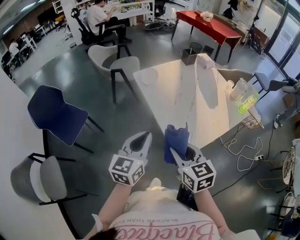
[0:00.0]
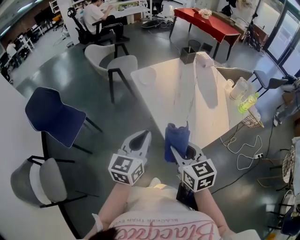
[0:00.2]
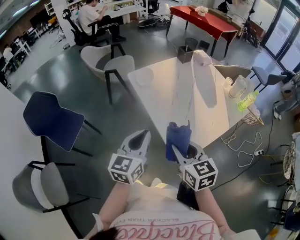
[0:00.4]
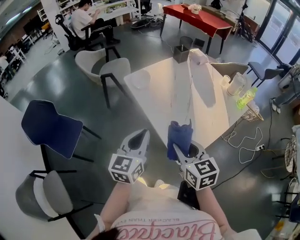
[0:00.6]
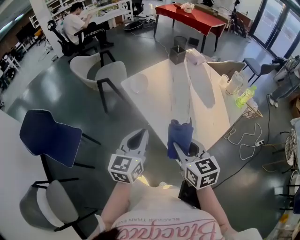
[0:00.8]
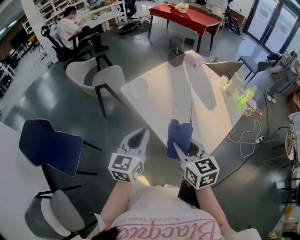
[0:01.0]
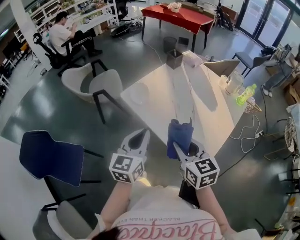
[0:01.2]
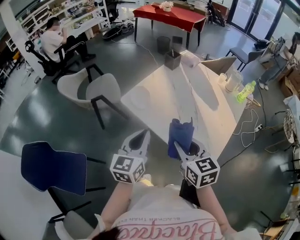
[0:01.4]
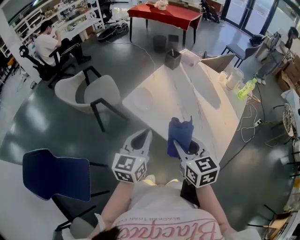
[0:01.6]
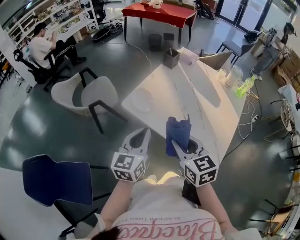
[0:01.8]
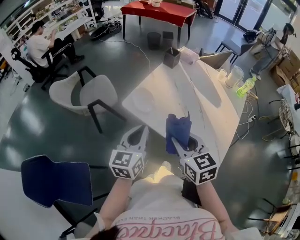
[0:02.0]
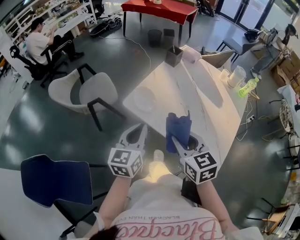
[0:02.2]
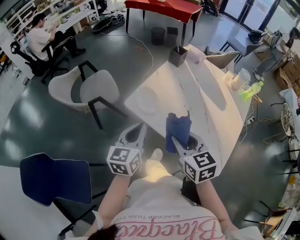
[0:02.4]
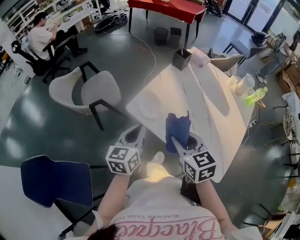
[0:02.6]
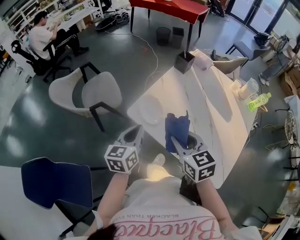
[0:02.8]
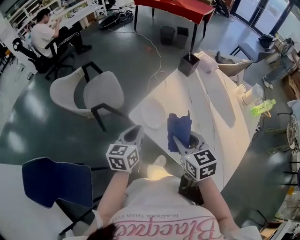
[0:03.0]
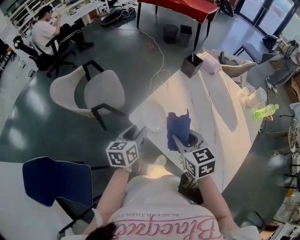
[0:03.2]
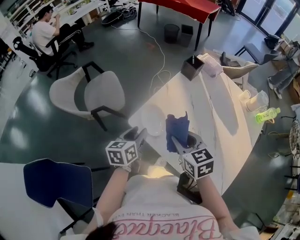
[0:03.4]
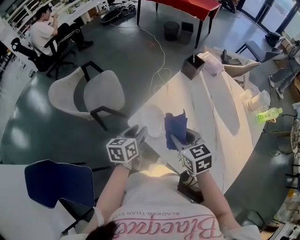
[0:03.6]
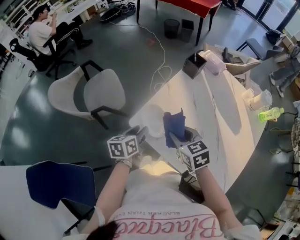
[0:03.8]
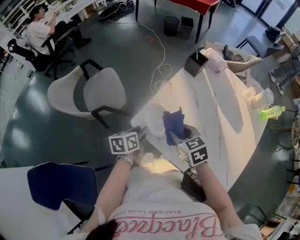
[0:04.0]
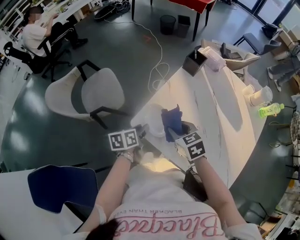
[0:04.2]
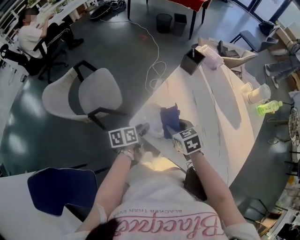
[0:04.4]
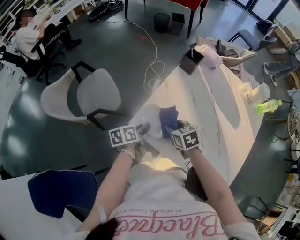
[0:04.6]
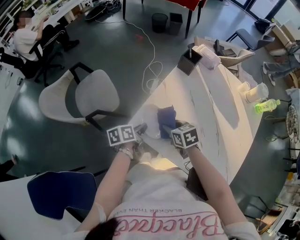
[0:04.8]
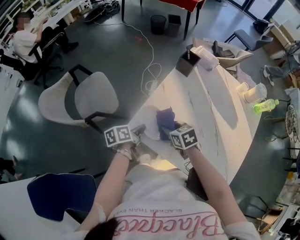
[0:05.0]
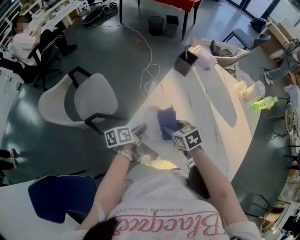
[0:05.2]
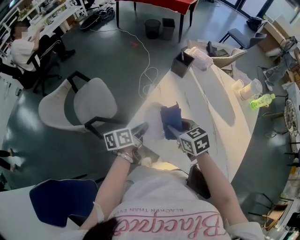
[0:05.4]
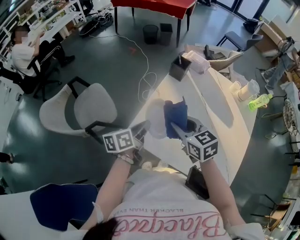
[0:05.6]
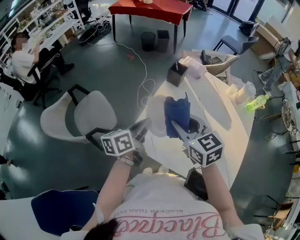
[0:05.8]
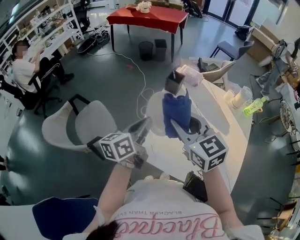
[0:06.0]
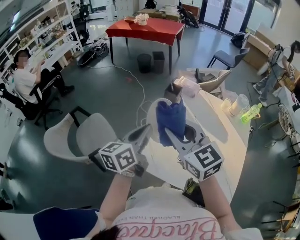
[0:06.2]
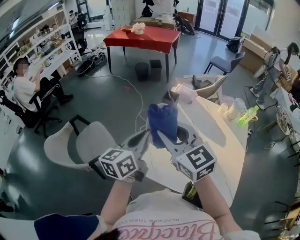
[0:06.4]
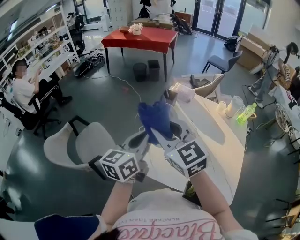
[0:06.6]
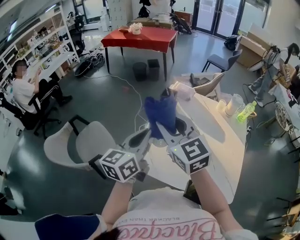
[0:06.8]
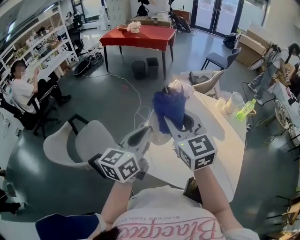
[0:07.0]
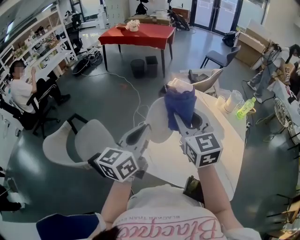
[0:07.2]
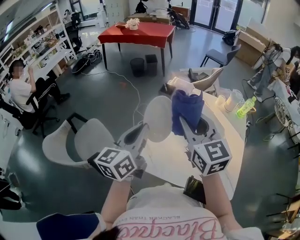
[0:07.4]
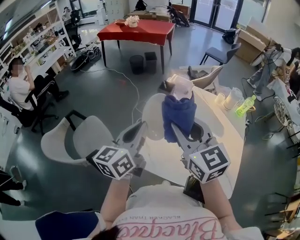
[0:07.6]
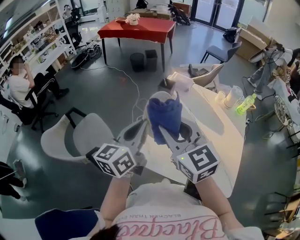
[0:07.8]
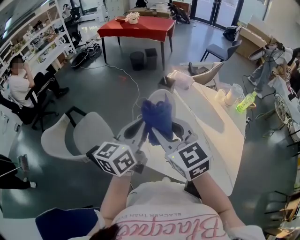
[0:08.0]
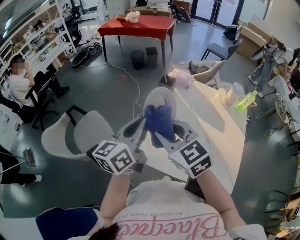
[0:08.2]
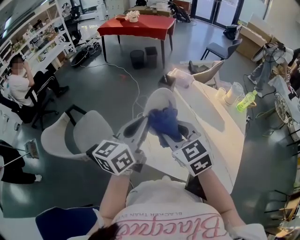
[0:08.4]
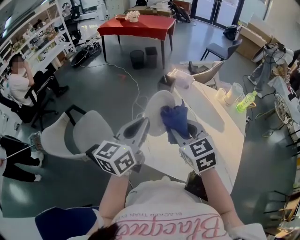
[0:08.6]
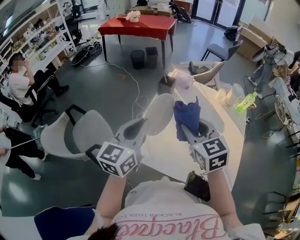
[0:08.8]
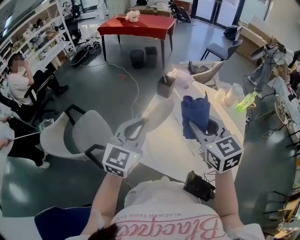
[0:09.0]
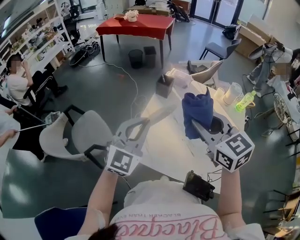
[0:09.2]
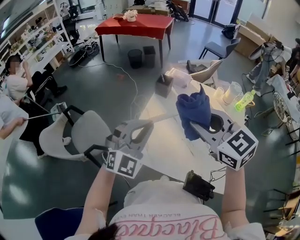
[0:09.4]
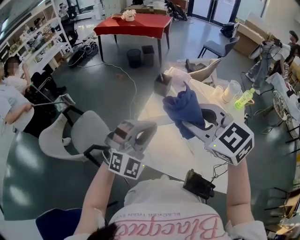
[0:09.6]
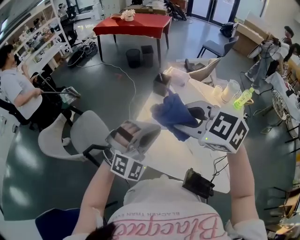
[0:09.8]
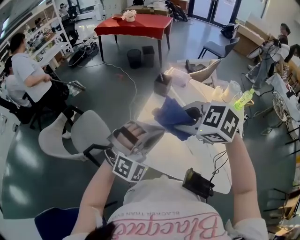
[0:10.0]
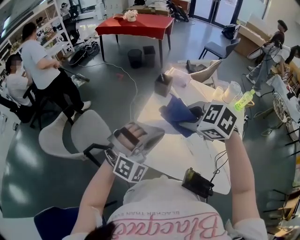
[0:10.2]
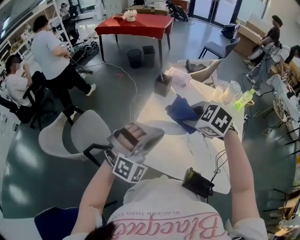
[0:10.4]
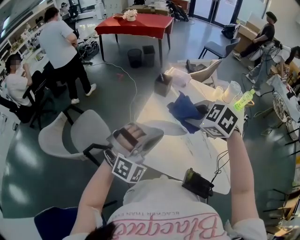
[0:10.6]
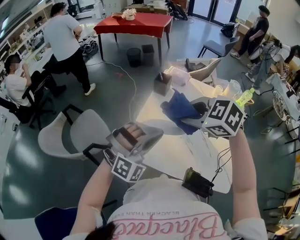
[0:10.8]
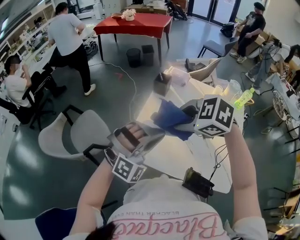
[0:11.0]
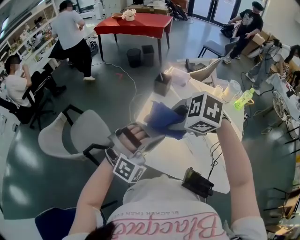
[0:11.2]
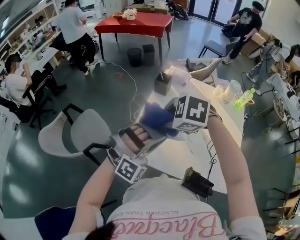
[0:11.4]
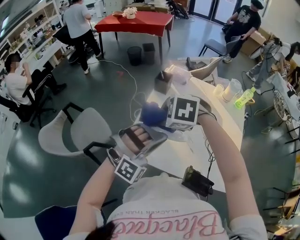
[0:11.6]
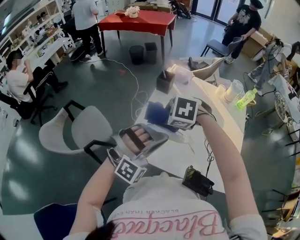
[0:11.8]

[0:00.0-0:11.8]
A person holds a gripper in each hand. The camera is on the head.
0:00.0 to 0:01.4: Both grippers travel together forward and to the left, some 25 cm. The right gripper rotates about 20 degrees.
0:01.4 to 0:03.0: The right gripper goes approximately 25 cm forward and to the left, while the left gripper is displaced forward, to the left and downward by some 25 cm.
0:03.0 to 0:04.4: Both grippers travel together downward and forward, some 15 cm. The left gripper turns by about 40 degrees, and opens its fingers.
0:04.4 to 0:06.0: The grippers both shift upward by approximately 25 cm. The left gripper turns by roughly 40 degrees, and closes its fingers. Meanwhile the right gripper tilts its fingers about 30 degrees upward.
0:06.0 to 0:07.4: The left gripper moves upward, approximately 10 cm. Meanwhile the right gripper is displaced upward and to the right by about 10 cm.
0:07.4 to 0:08.8: The right gripper shifts some 10 cm downward, and moves about 10 cm to the left and comes back.
0:08.8 to 0:10.4: The left gripper moves to the right and backward, about 10 cm, and rolls clockwise, seen from behind, by approximately 90 degrees. The right gripper reaches roughly 10 cm upward, then returns, and tilts its fingers roughly 30 degrees downward.
0:10.4 to 0:11.8: The right gripper goes approximately 10 cm to the left, and rotates some 20 degrees.

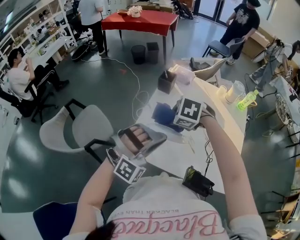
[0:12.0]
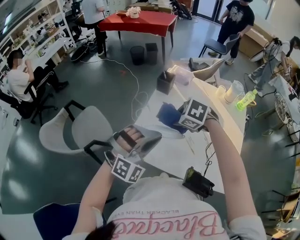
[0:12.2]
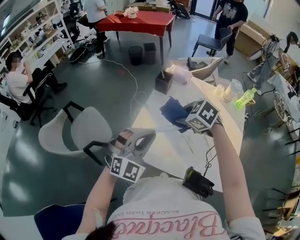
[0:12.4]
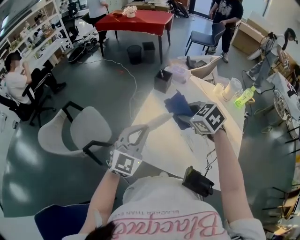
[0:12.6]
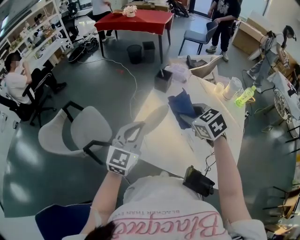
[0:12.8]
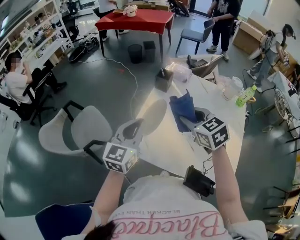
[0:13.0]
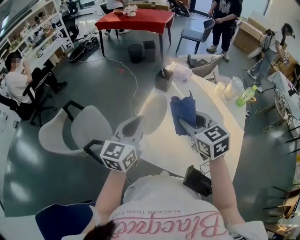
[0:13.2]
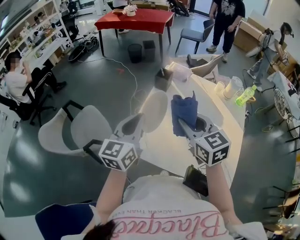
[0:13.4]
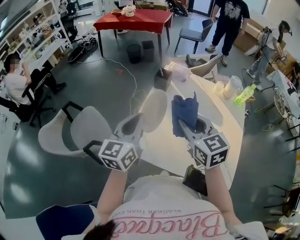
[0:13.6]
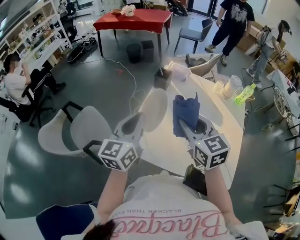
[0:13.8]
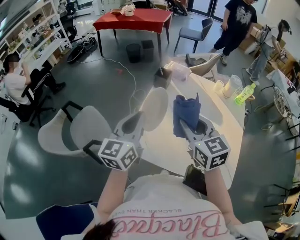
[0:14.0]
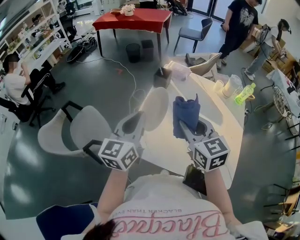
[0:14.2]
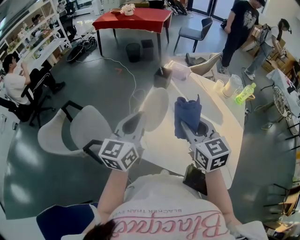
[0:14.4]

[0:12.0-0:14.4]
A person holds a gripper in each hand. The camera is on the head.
0:12.0 to 0:13.2: The right gripper goes about 10 cm upward and to the right, and angles its fingers upward, by approximately 40 degrees. Meanwhile the left gripper is displaced forward and to the left by some 10 cm, and rolls counterclockwise, seen from behind, by about 90 degrees.
0:13.2 to 0:14.4: The grippers make only small movements.

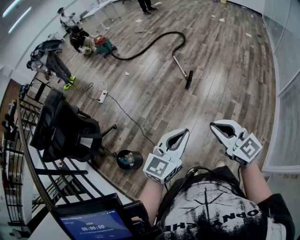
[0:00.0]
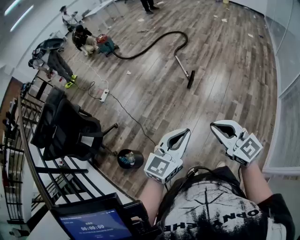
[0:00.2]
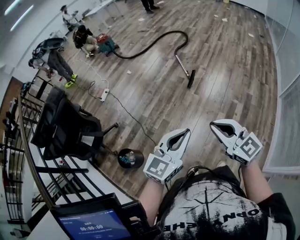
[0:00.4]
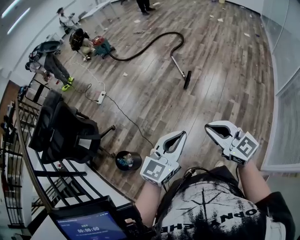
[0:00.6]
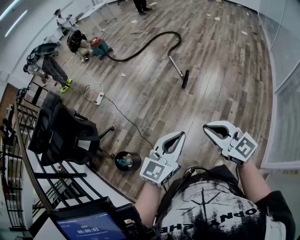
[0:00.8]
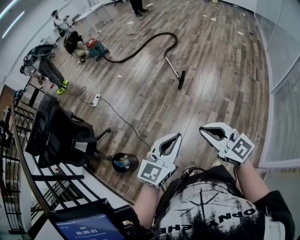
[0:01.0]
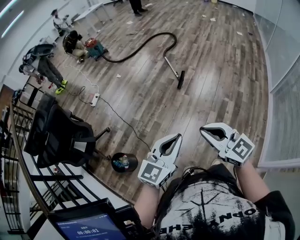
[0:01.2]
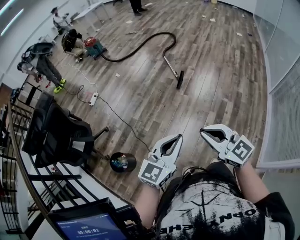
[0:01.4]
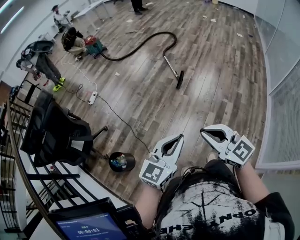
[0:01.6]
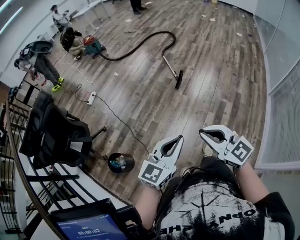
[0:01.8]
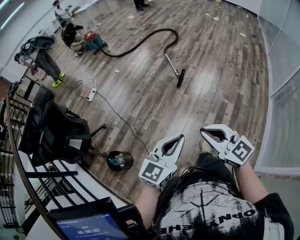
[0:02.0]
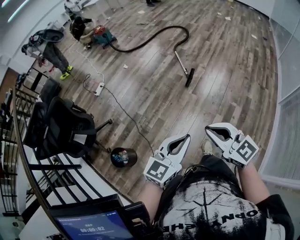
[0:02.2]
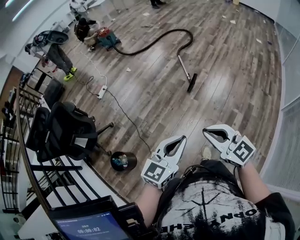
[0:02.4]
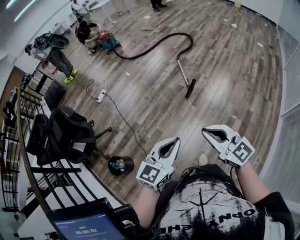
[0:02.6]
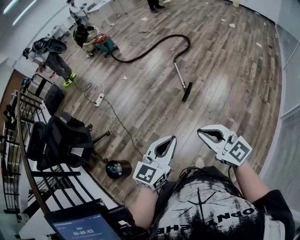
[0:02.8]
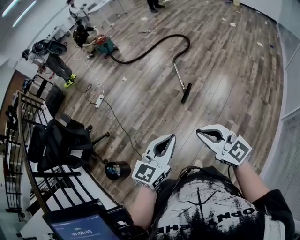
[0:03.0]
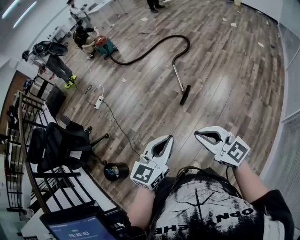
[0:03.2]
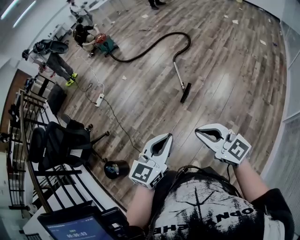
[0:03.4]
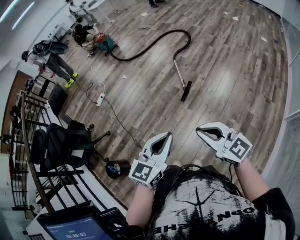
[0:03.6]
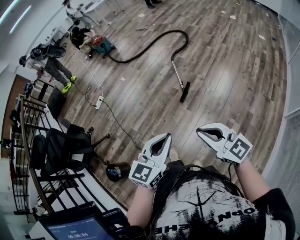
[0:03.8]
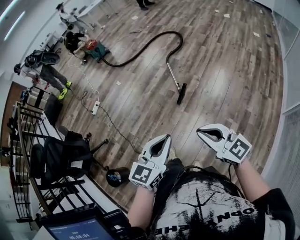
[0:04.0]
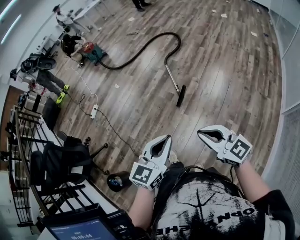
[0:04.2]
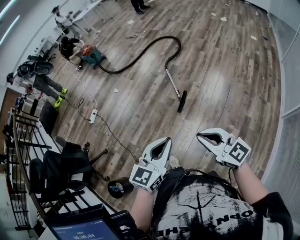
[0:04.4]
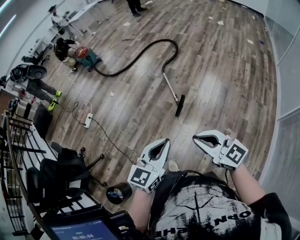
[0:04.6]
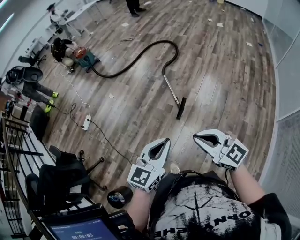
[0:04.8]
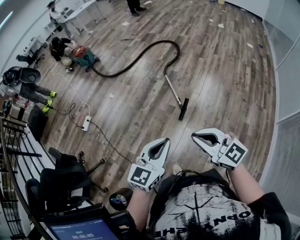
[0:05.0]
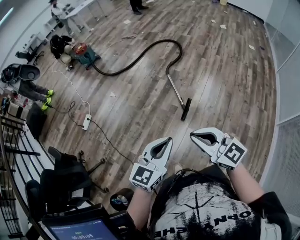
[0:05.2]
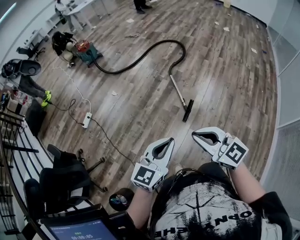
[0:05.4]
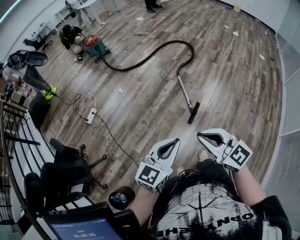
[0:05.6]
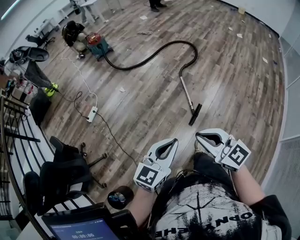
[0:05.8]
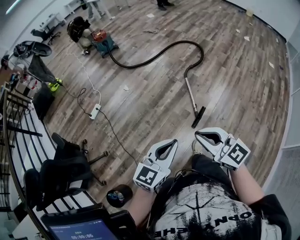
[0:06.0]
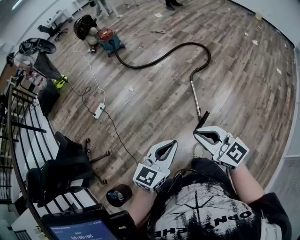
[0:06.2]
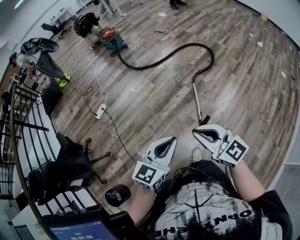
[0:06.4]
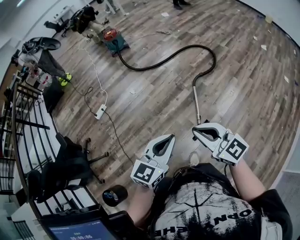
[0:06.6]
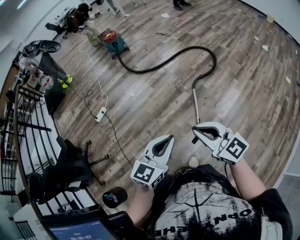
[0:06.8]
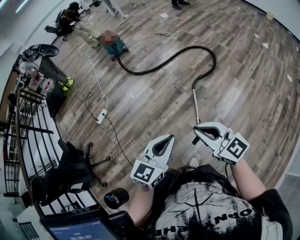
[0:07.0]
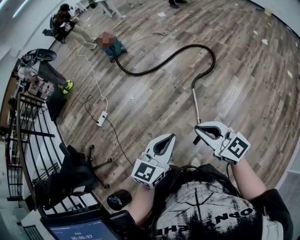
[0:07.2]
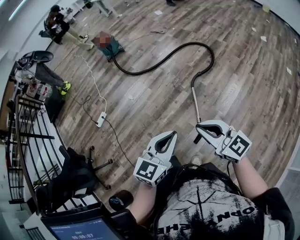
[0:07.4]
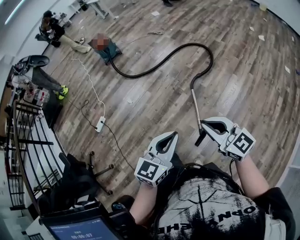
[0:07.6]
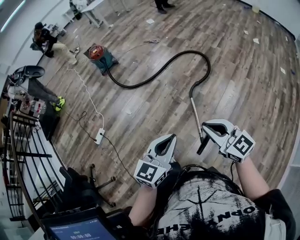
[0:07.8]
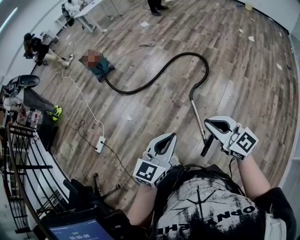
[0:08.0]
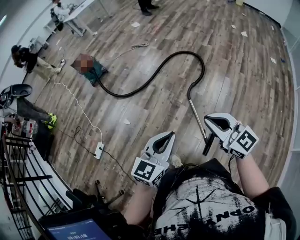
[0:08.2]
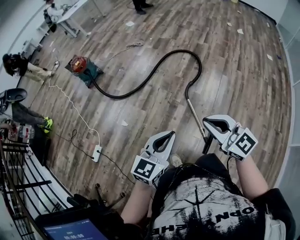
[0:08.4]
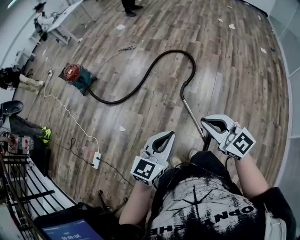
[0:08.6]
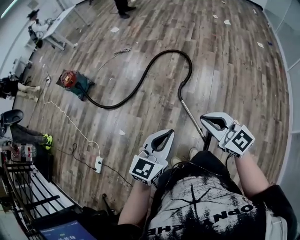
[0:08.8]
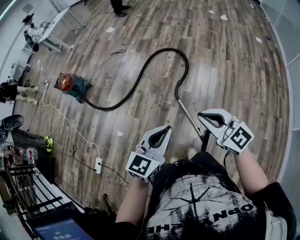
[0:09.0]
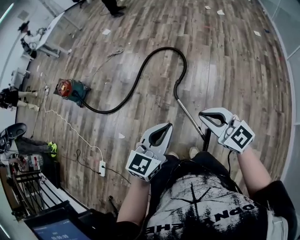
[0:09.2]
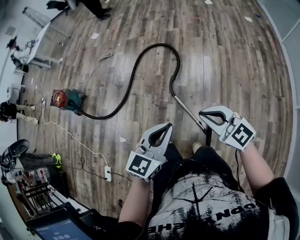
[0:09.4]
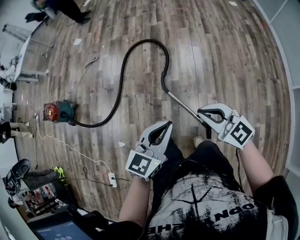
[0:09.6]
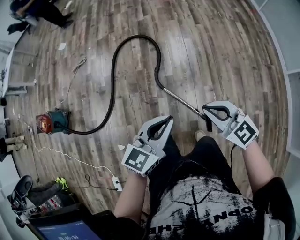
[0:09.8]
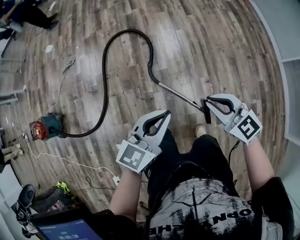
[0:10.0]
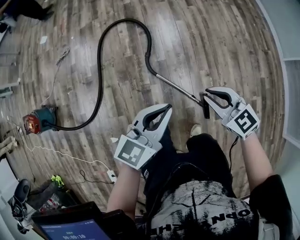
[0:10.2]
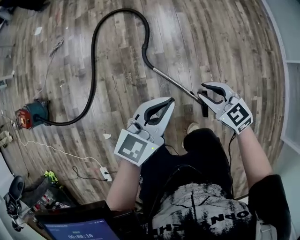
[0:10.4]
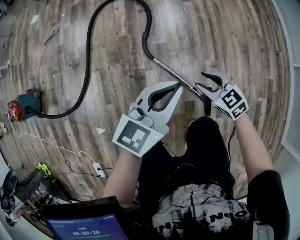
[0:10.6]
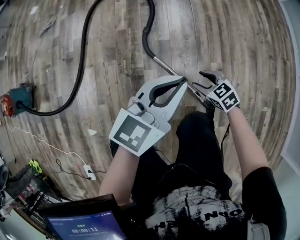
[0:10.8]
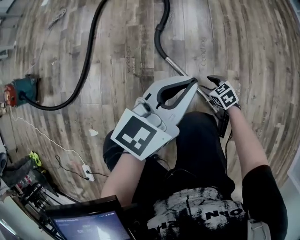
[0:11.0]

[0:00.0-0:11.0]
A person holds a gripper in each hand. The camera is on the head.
0:00.0 to 0:01.6: There are only small adjustments of the grippers.
0:01.6 to 0:03.2: Both grippers travel together forward and to the right, roughly 30 cm.
0:03.2 to 0:04.8: Both grippers travel together forward, approximately 25 cm.
0:04.8 to 0:06.2: Both grippers move forward and to the left, some 20 cm.
0:06.2 to 0:07.8: Both grippers travel together forward and to the right, roughly 30 cm.
0:07.8 to 0:09.4: The left gripper changes place by some 25 cm, and turns by about 30 degrees. The right gripper moves roughly 20 cm, and swivels some 20 degrees.
0:09.4 to 0:11.0: The right gripper is displaced downward by some 70 cm, tips its fingers downward by roughly 40 degrees, and opens; the left gripper moves downward and forward, some 40 cm.
